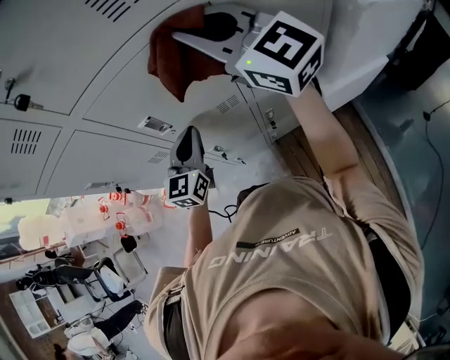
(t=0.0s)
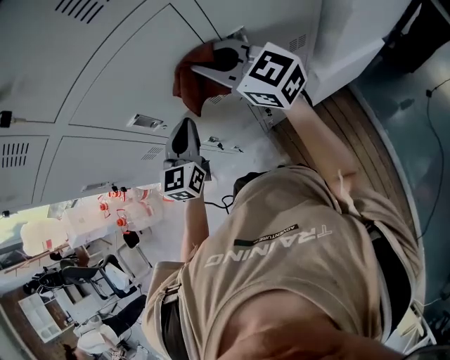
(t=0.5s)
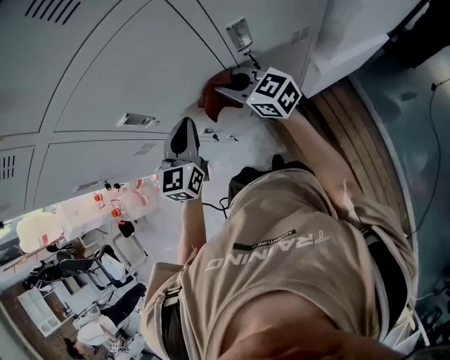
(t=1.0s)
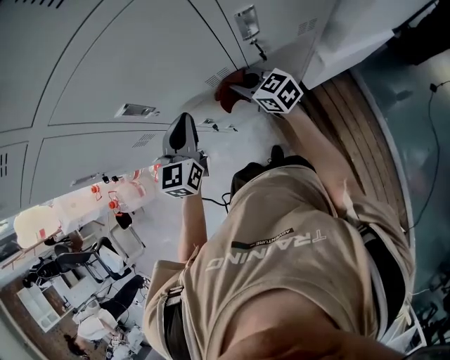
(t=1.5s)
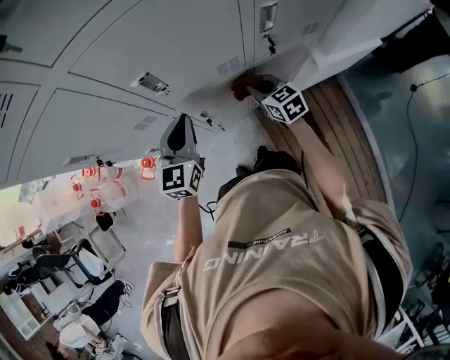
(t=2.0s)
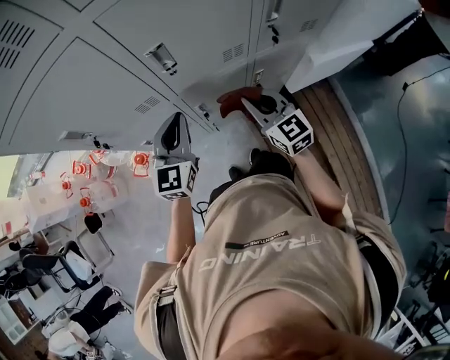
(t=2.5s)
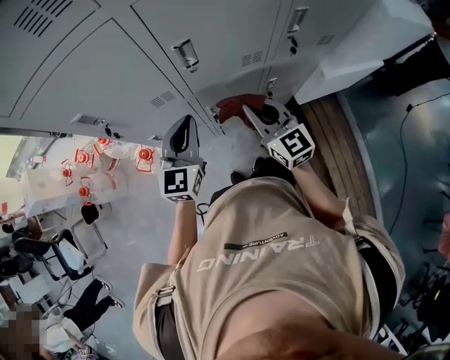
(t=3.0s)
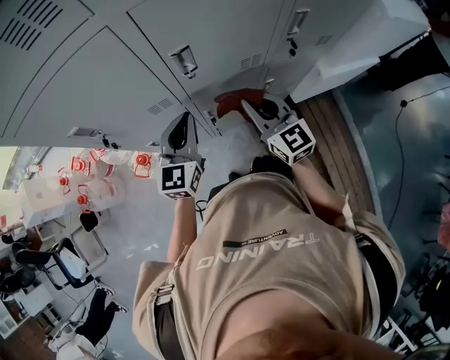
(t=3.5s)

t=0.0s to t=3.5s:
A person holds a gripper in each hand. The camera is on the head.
t=0.0s to t=2.0s: The right gripper goes approximately 40 cm downward, and tips its fingers downward by some 40 degrees. The left gripper moves to the left, roughly 5 cm.
t=2.0s to t=3.5s: The right gripper heads upward, to the left and backward, covering approximately 20 cm, and rotates roughly 30 degrees. The left gripper goes some 5 cm to the left.

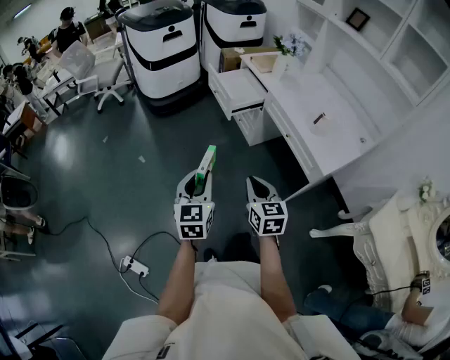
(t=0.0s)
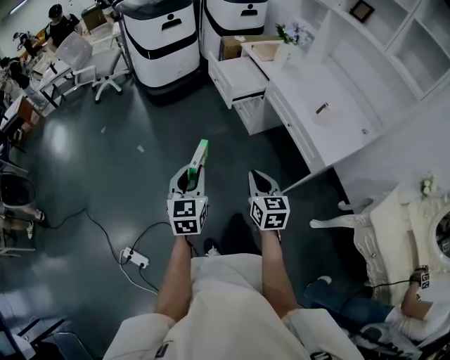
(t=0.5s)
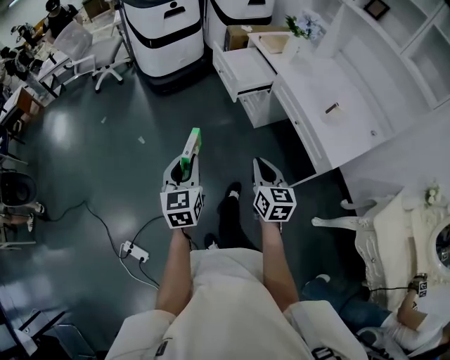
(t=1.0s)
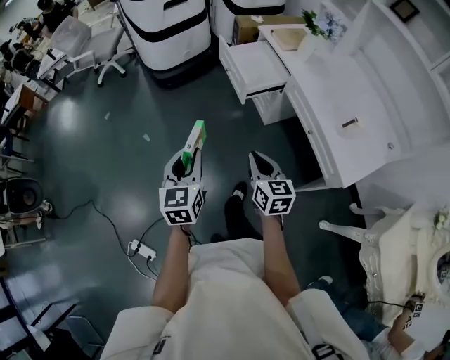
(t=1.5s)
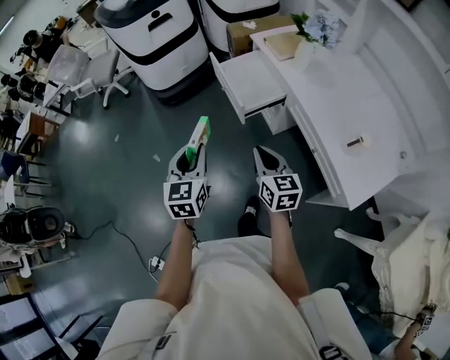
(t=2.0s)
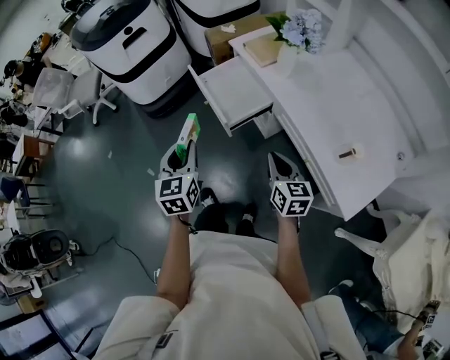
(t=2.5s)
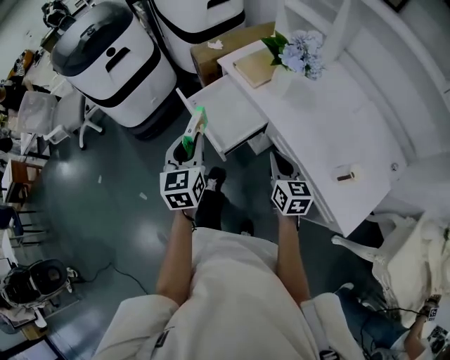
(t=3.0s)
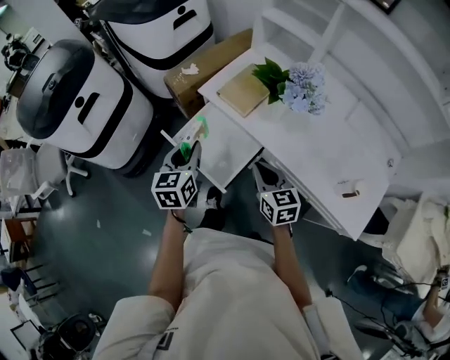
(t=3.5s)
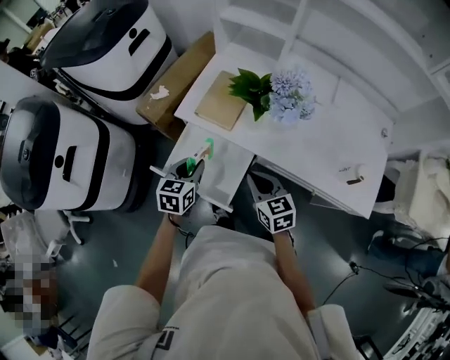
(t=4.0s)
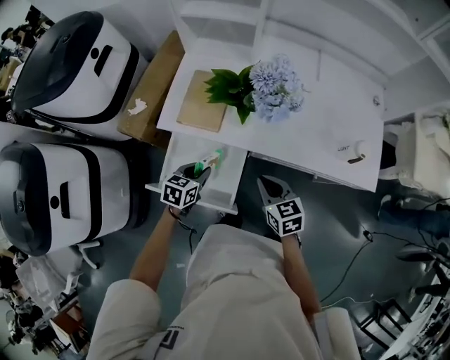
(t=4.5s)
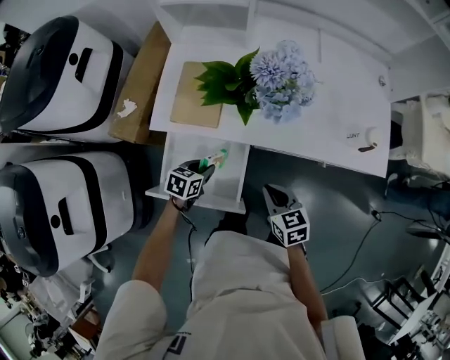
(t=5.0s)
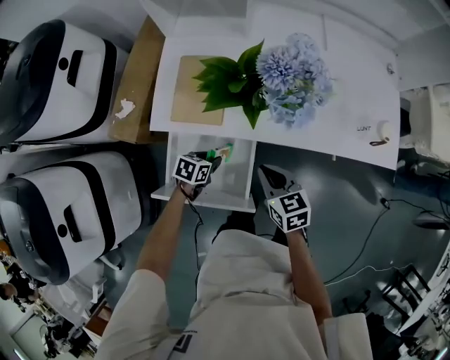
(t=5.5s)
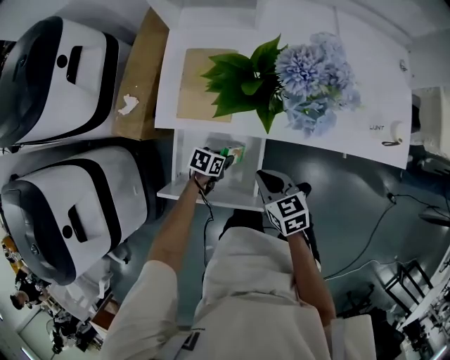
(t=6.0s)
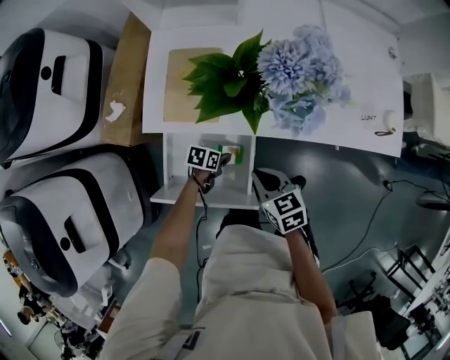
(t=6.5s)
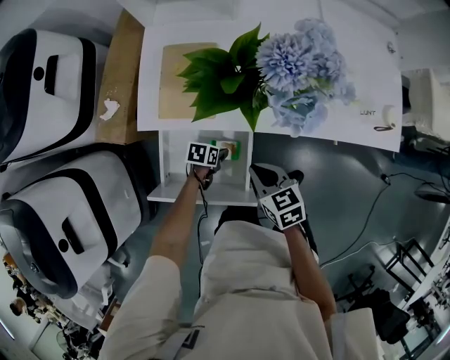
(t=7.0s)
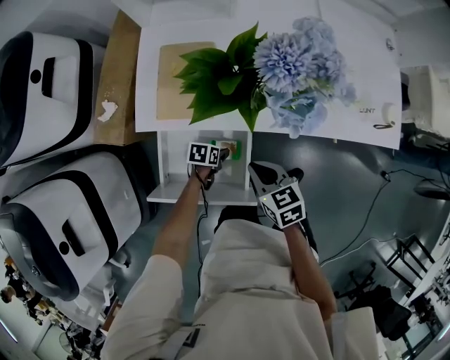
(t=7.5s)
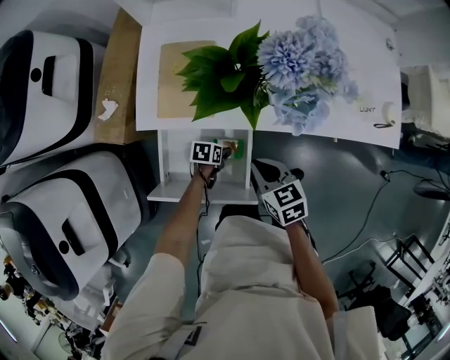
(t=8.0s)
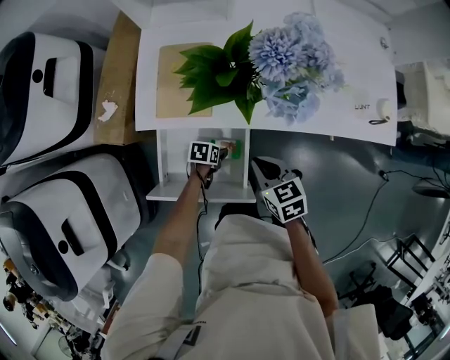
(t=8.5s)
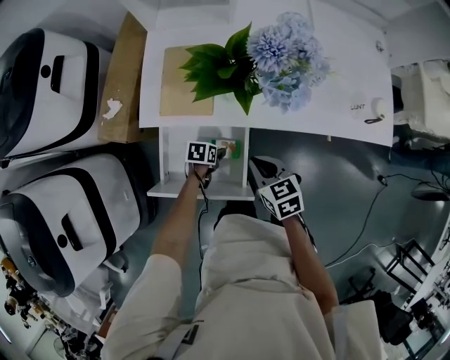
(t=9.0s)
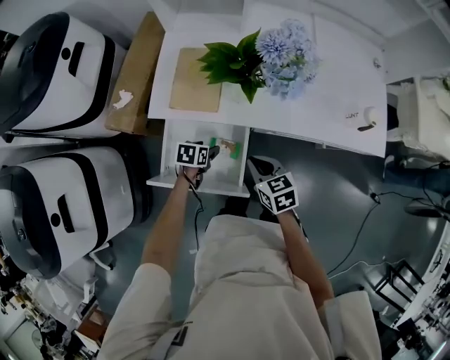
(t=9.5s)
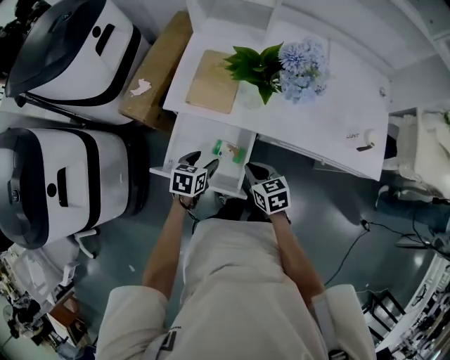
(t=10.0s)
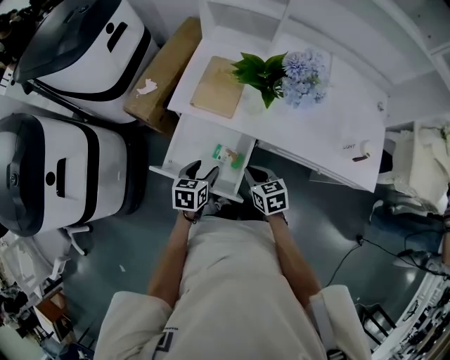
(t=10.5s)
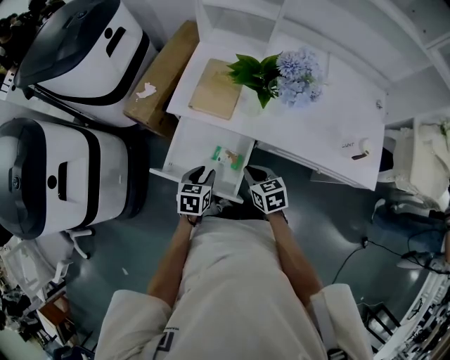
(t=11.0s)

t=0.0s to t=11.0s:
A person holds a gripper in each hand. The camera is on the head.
t=0.0s to t=2.0s: The grippers both shift forward by roughly 35 cm.
t=2.0s to t=3.5s: The right gripper moves approximately 30 cm, and turns by roughly 20 degrees. The left gripper changes place by roughly 40 cm, and swivels roughly 30 degrees.
t=3.5s to t=5.5s: The right gripper travels downward by roughly 10 cm, and swivels about 30 degrees. Meanwhile the left gripper is displaced downward by approximately 30 cm, and swivels some 70 degrees.
t=5.5s to t=7.5s: The left gripper moves downward, some 10 cm, and opens up.
t=7.5s to t=9.0s: The grippers move only a little.
t=9.0s to t=11.0s: The left gripper shifts approximately 20 cm upward, swivels approximately 40 degrees, and closes.

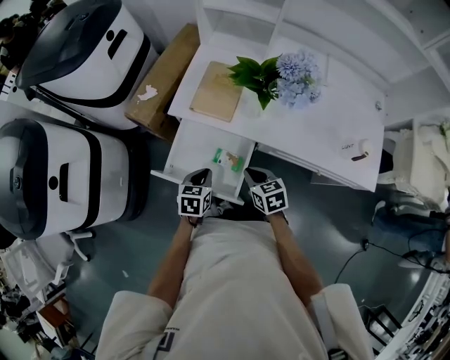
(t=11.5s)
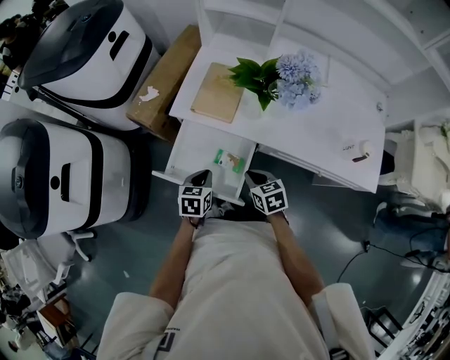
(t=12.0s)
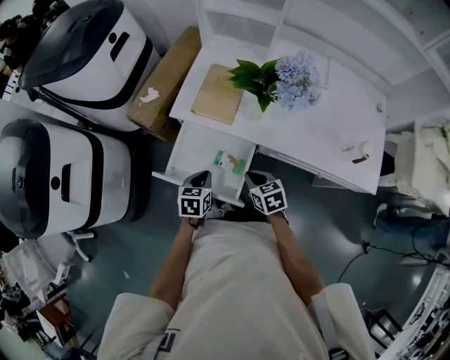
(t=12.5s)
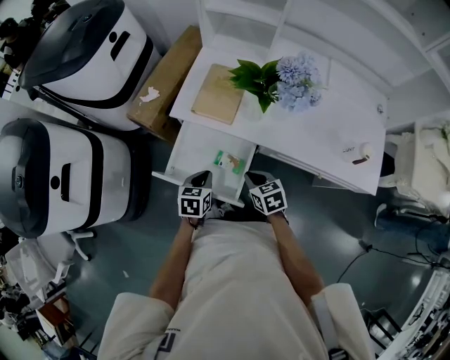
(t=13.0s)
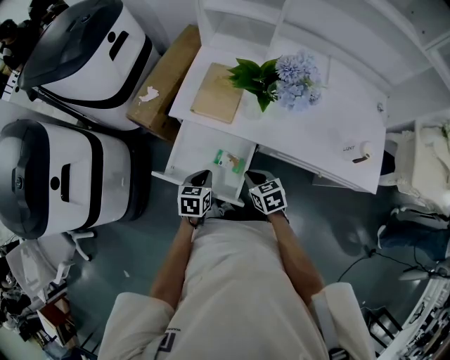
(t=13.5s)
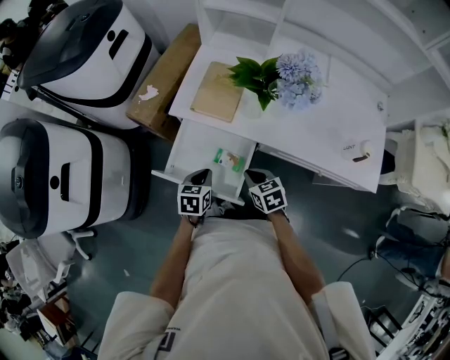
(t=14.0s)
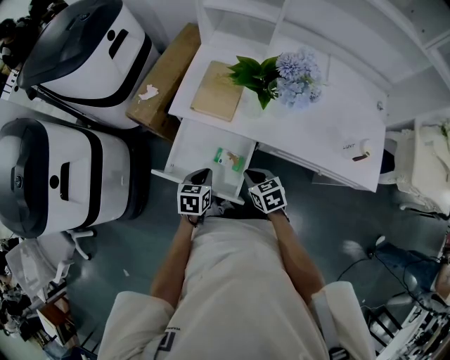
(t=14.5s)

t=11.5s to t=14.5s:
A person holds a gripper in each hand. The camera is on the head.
t=11.5s to t=13.0s: The grippers move only a little.
t=13.0s to t=14.5s: Both grippers stay put.

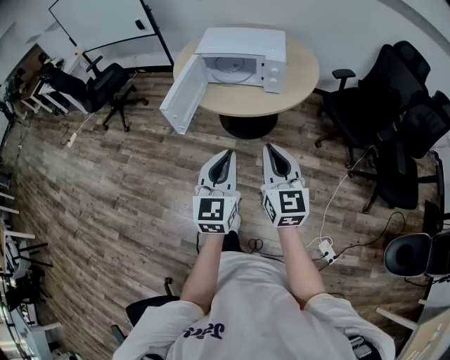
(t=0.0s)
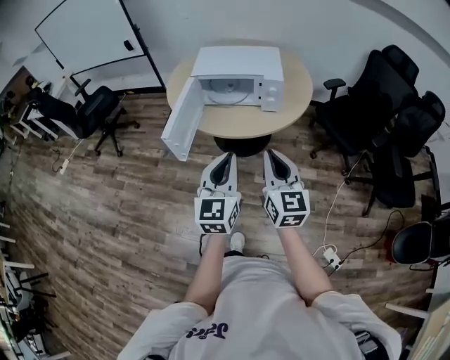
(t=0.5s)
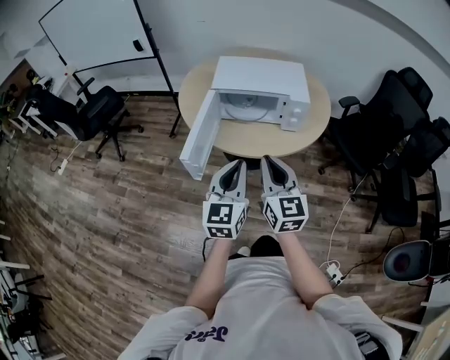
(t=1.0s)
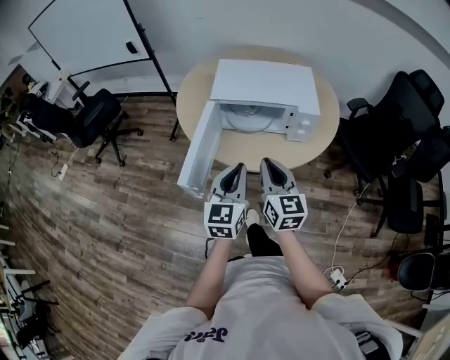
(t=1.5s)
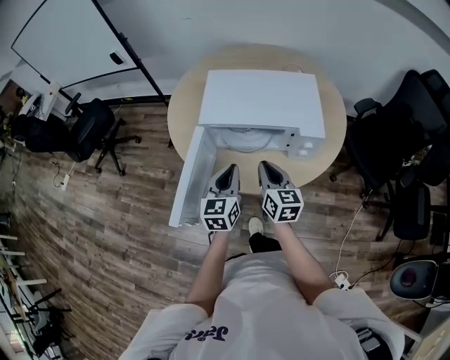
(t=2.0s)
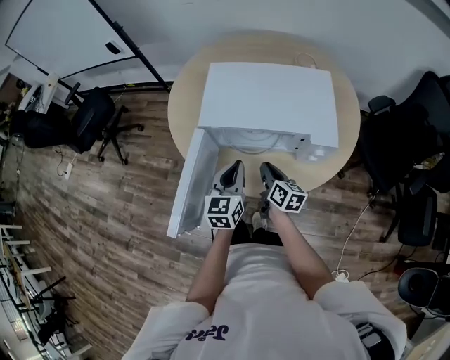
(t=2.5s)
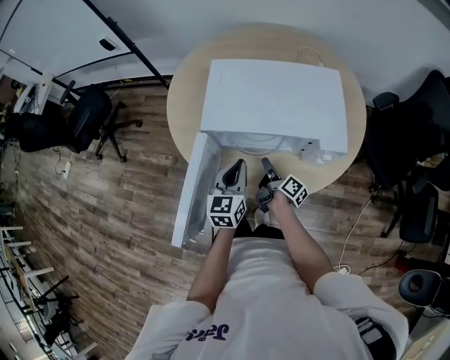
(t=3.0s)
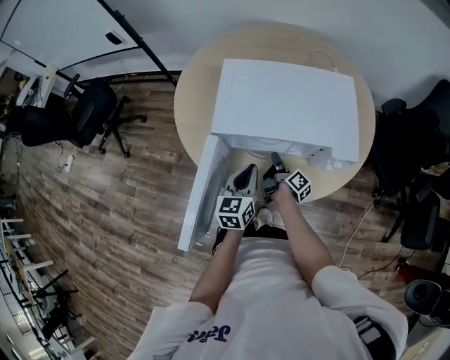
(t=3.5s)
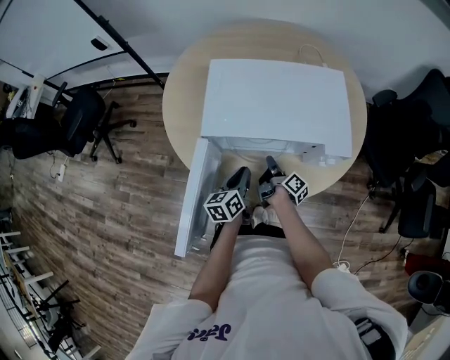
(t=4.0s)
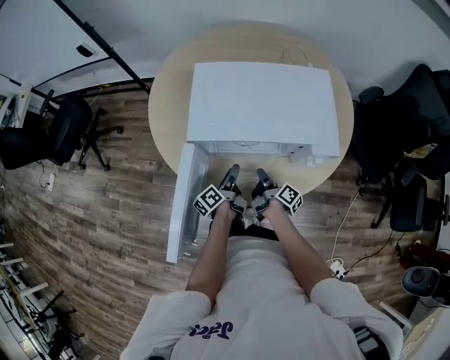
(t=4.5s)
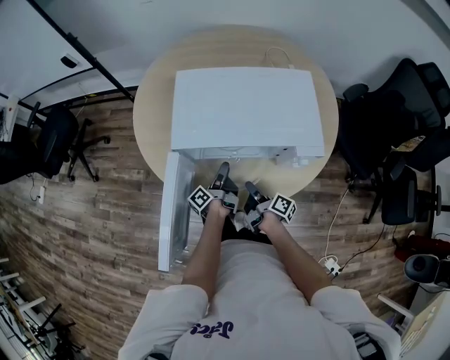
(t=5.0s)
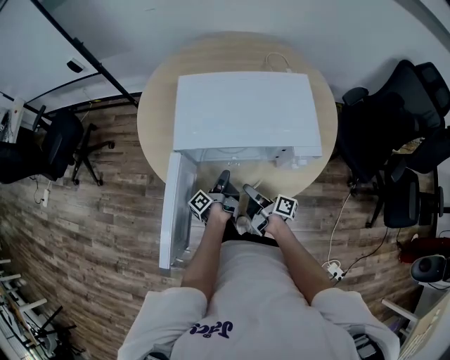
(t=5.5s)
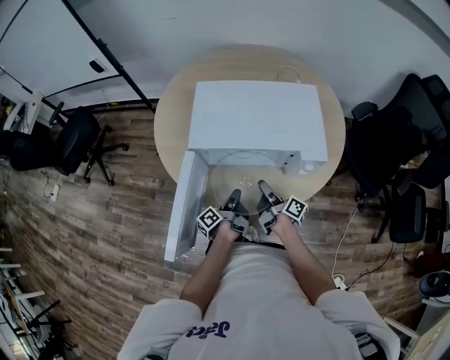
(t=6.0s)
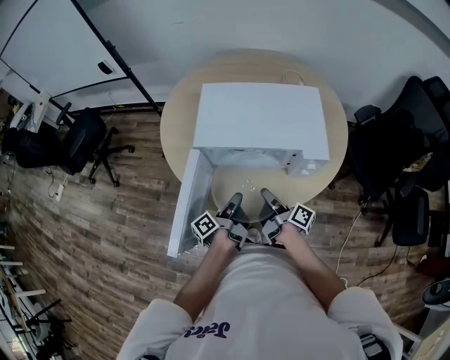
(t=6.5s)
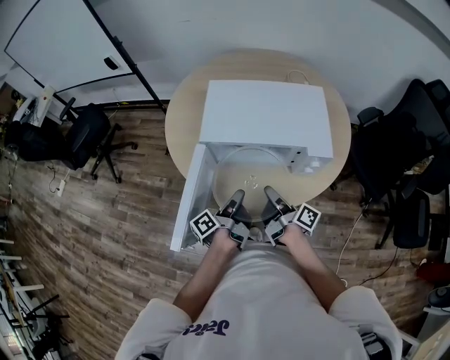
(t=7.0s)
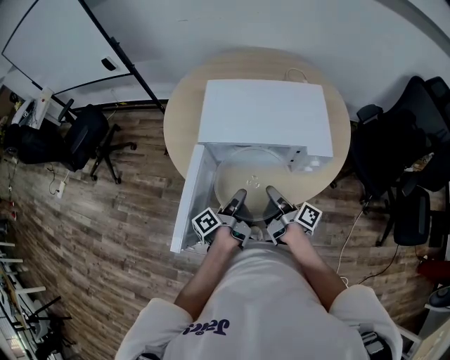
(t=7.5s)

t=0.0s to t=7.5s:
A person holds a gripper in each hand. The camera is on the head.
t=0.0s to t=2.0s: The pair of grippers is taken forward, roughly 40 cm. The right gripper turns by some 20 degrees.
t=2.0s to t=4.0s: Both grippers travel together downward and forward, roughly 20 cm. The right gripper rolls clockwise, seen from behind, by about 70 degrees, and opens and closes again. The left gripper swivels roughly 30 degrees.
t=4.0s to t=5.5s: The left gripper heads downward, covering roughly 5 cm, rolls counterclockwise, seen from behind, by roughly 60 degrees, and opens, then closes once more, while the right gripper travels backward by some 10 cm, turns by some 20 degrees, and opens its fingers.
t=5.5s to t=7.5s: The right gripper is displaced upward by some 10 cm, and closes. Meanwhile the left gripper shifts about 15 cm upward and backward.

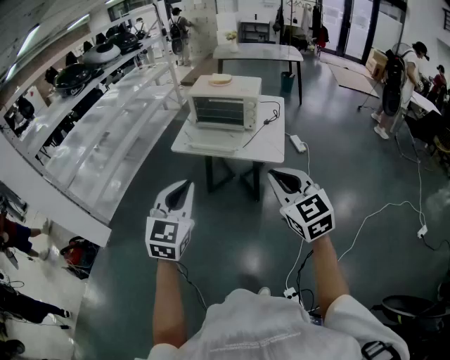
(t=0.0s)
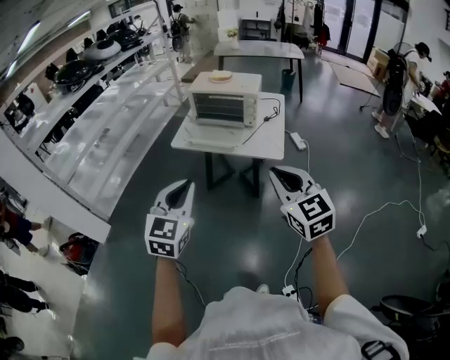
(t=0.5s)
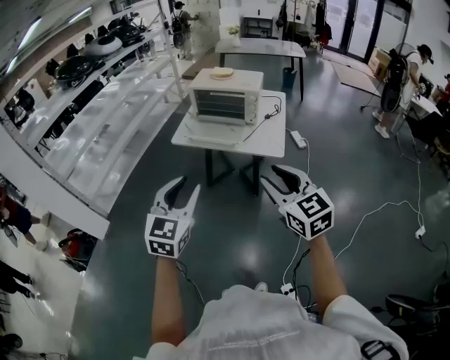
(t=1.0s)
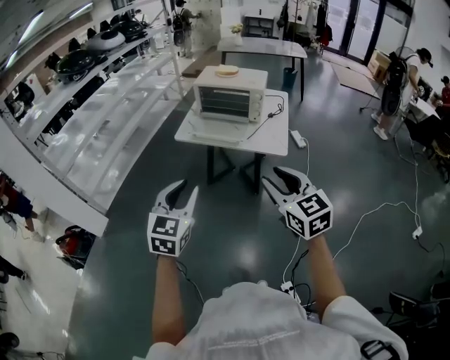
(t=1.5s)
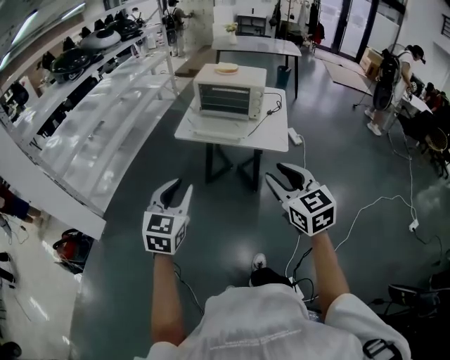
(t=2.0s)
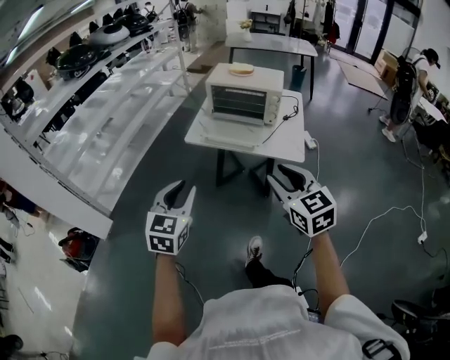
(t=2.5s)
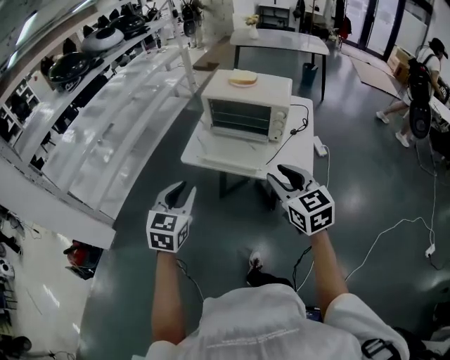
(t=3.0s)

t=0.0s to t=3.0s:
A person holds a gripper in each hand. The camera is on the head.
t=0.0s to t=1.5s: The right gripper opens its fingers; the left gripper moves roughly 5 cm, and opens its fingers.
t=1.5s to t=3.0s: Both grippers travel together forward, approximately 25 cm.
